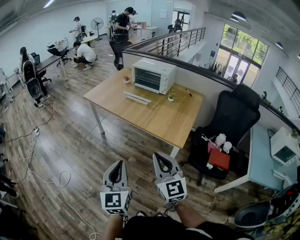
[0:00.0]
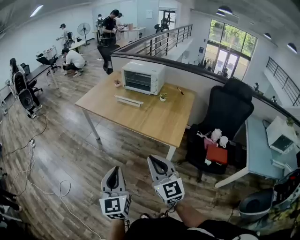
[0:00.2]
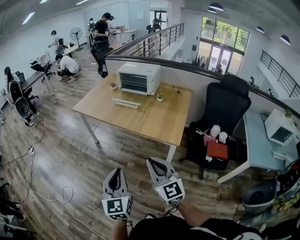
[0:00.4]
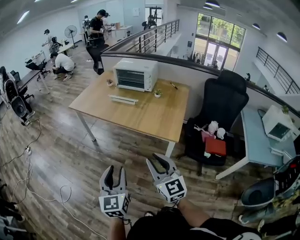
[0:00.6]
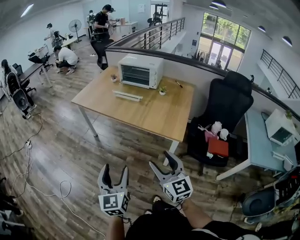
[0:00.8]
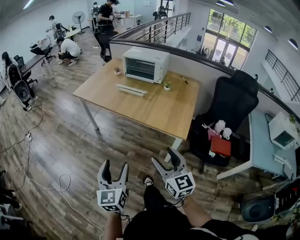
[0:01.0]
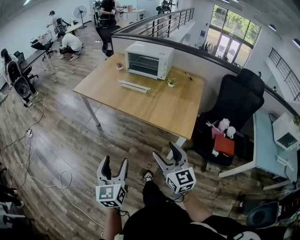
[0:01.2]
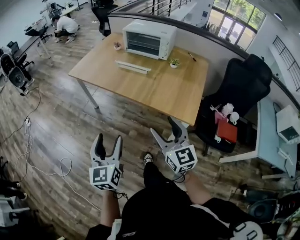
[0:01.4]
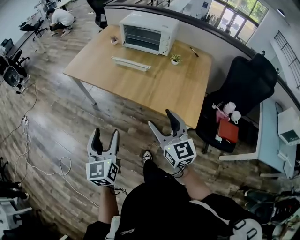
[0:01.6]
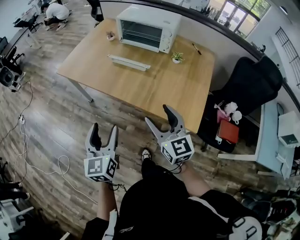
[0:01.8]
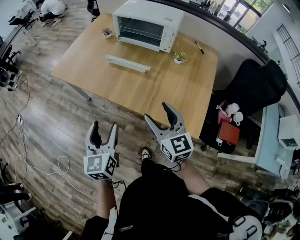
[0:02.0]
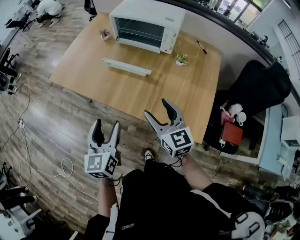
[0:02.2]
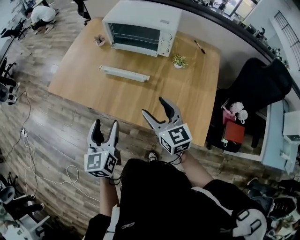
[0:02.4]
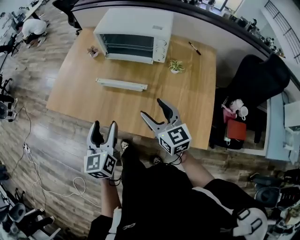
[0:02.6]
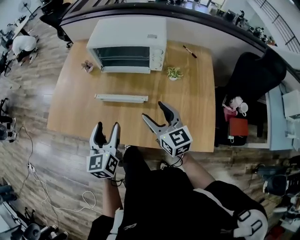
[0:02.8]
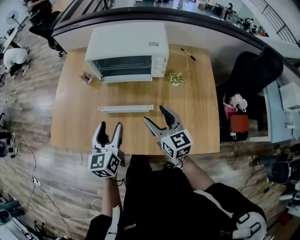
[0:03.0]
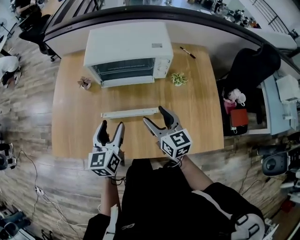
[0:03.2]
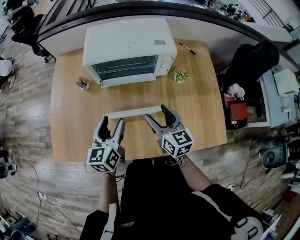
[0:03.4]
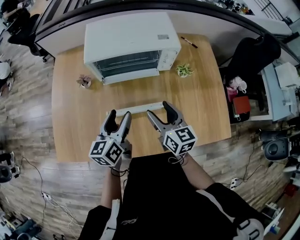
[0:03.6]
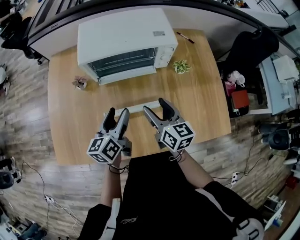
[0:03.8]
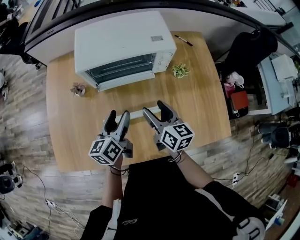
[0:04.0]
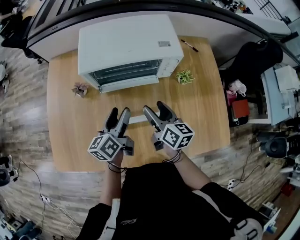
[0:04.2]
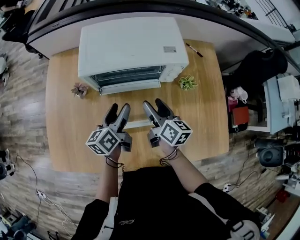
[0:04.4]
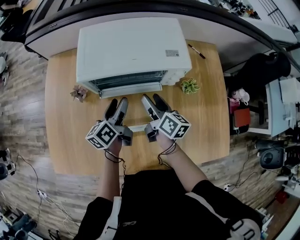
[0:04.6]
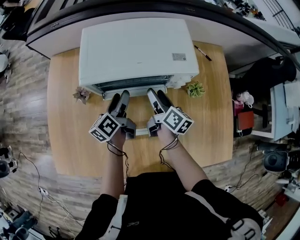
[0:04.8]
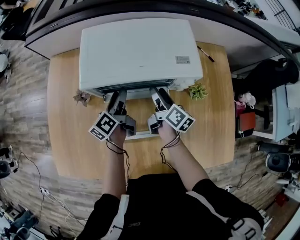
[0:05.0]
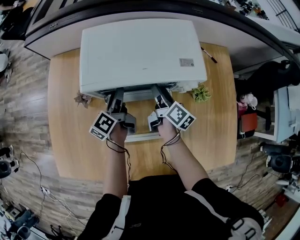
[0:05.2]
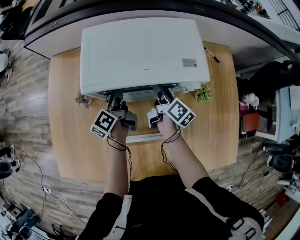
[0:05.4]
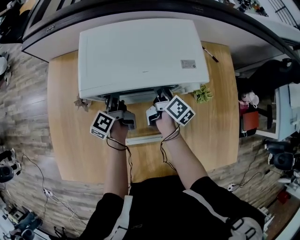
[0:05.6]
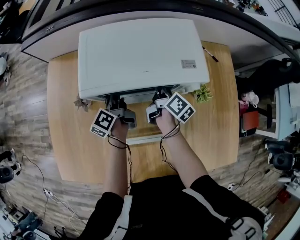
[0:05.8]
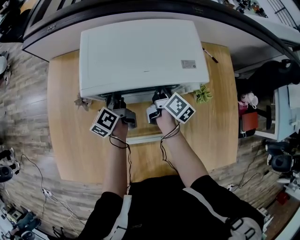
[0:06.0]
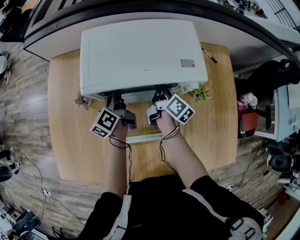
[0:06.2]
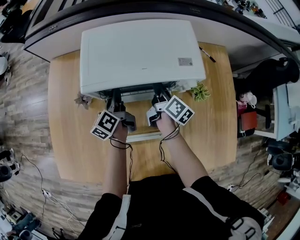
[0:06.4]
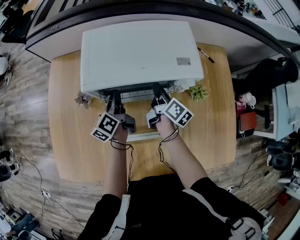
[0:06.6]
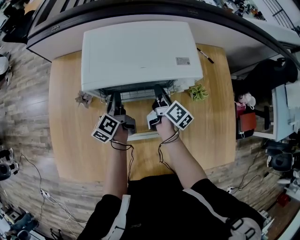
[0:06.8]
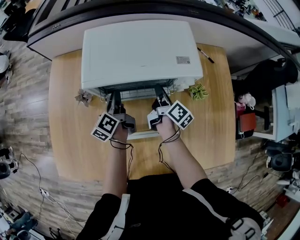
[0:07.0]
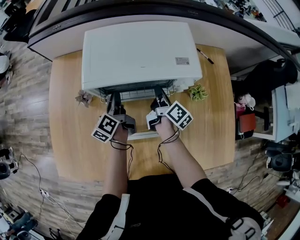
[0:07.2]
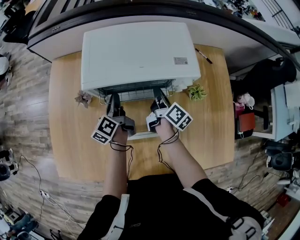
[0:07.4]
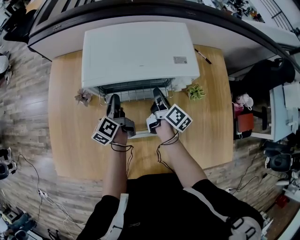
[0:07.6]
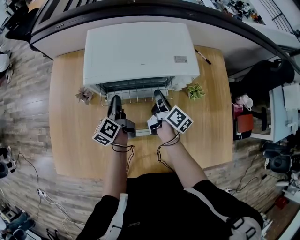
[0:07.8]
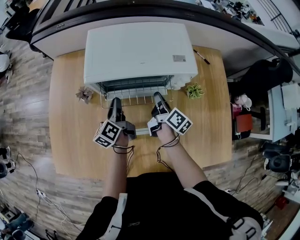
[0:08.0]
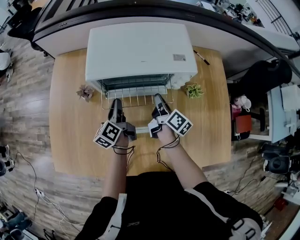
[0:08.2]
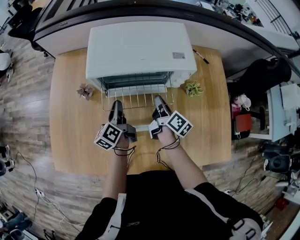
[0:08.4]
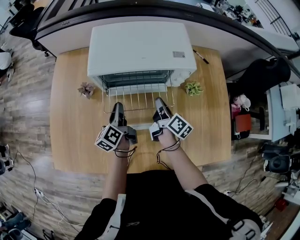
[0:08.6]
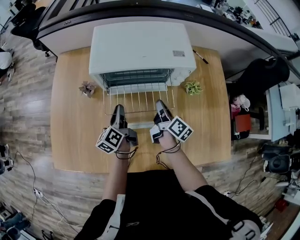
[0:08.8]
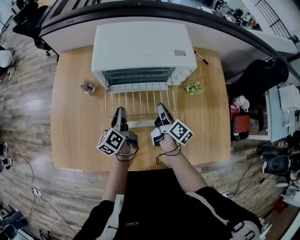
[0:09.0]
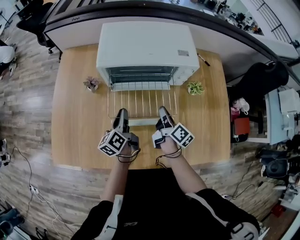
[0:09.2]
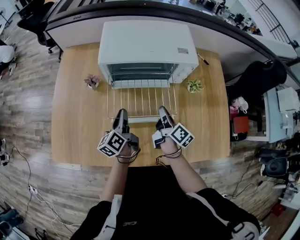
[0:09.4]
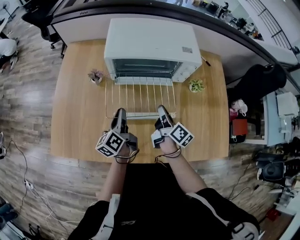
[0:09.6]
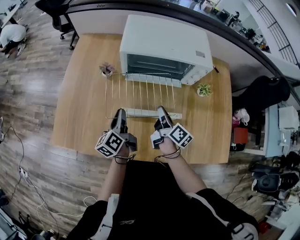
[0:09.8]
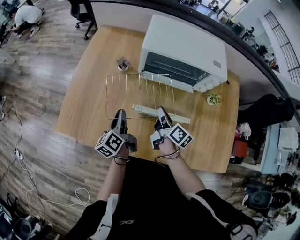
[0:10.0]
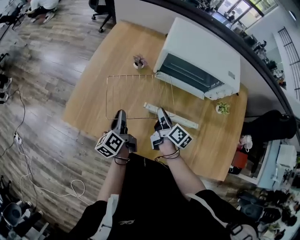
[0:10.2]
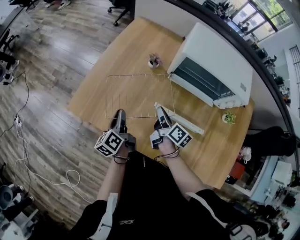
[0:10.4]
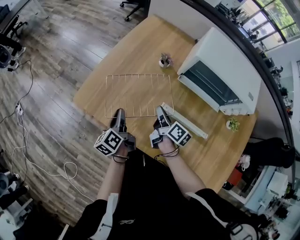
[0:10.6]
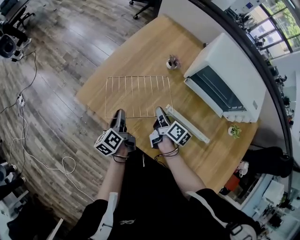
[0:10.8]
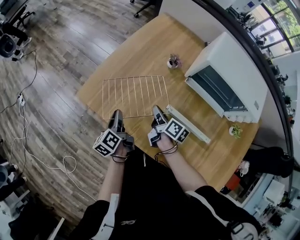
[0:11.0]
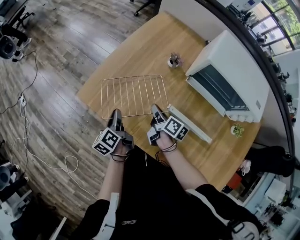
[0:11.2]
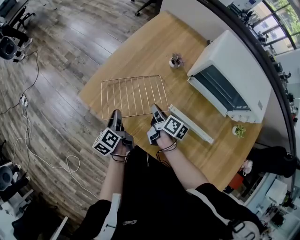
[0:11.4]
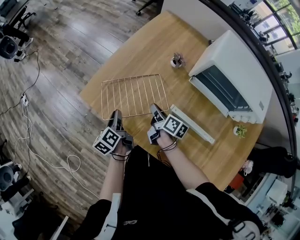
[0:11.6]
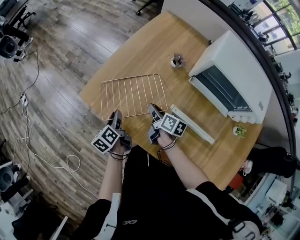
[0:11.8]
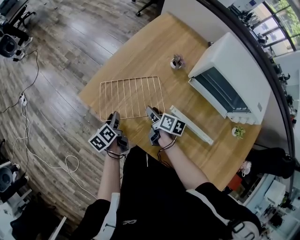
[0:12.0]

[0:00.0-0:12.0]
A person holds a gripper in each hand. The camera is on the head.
0:00.0 to 0:01.6: The grippers both shift forward by approximately 25 cm. The left gripper opens; the right gripper opens.
0:01.6 to 0:03.0: The pair of grippers is taken forward, about 40 cm. The right gripper rotates approximately 20 degrees, while the left gripper rotates roughly 30 degrees.
0:03.0 to 0:04.4: The grippers both shift forward and downward by roughly 20 cm. The right gripper changes its angle by roughly 40 degrees. Meanwhile the left gripper turns by about 30 degrees.
0:04.4 to 0:06.0: Both grippers move forward, about 15 cm. The left gripper rotates about 20 degrees, and closes its fingers. The right gripper swivels approximately 20 degrees, and closes.
0:06.0 to 0:07.6: Both grippers move backward, about 5 cm.
0:07.6 to 0:09.0: Both grippers travel together backward, roughly 10 cm.
0:09.0 to 0:10.4: The left gripper shifts by roughly 30 cm, and changes its angle by roughly 30 degrees. The right gripper shifts by about 25 cm, and rotates approximately 30 degrees.
0:10.4 to 0:12.0: Both grippers travel together to the left and downward, roughly 15 cm. The right gripper rotates about 30 degrees, and opens up; the left gripper swivels some 20 degrees.

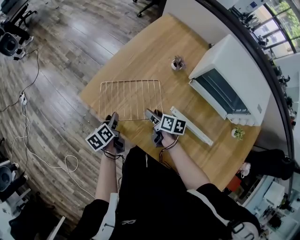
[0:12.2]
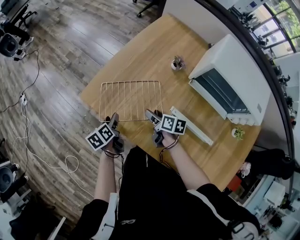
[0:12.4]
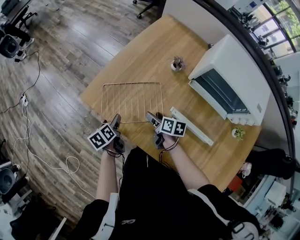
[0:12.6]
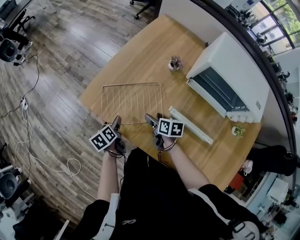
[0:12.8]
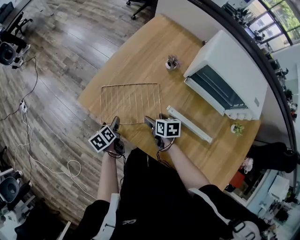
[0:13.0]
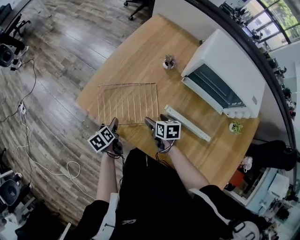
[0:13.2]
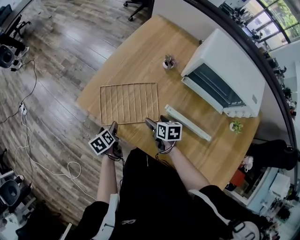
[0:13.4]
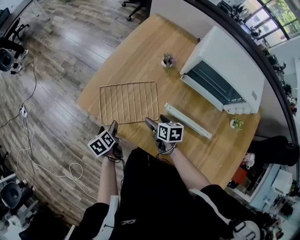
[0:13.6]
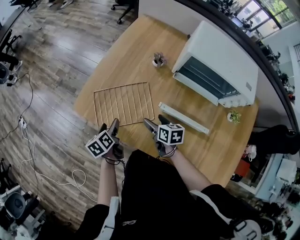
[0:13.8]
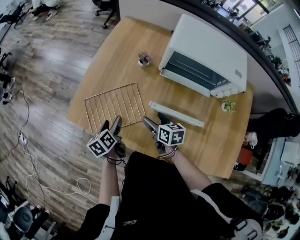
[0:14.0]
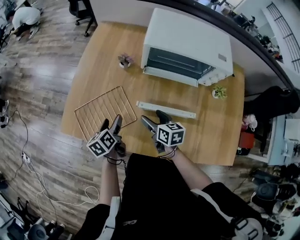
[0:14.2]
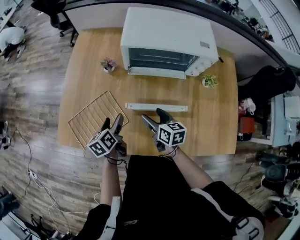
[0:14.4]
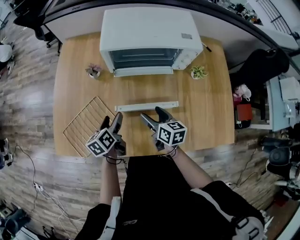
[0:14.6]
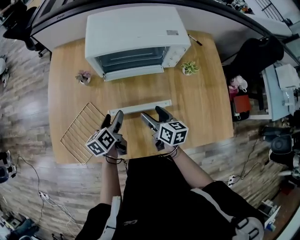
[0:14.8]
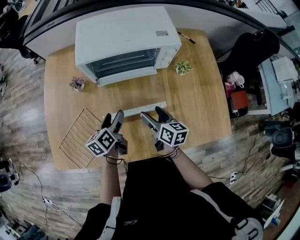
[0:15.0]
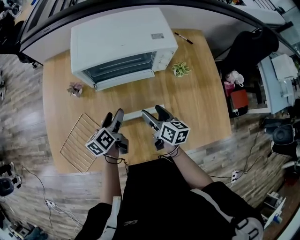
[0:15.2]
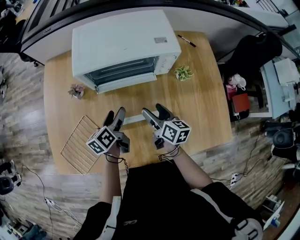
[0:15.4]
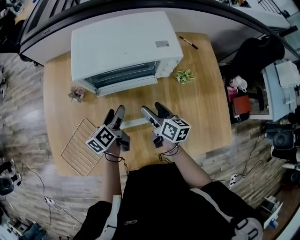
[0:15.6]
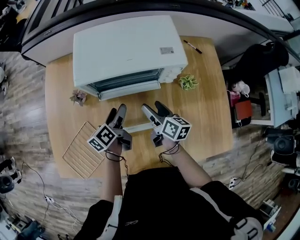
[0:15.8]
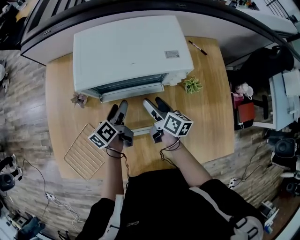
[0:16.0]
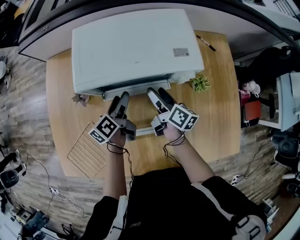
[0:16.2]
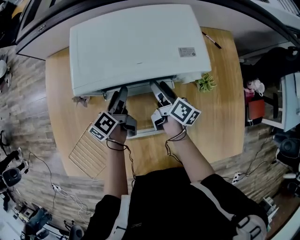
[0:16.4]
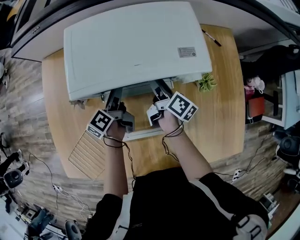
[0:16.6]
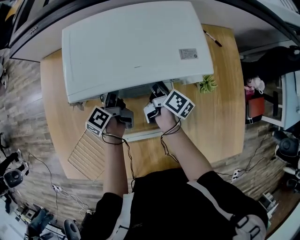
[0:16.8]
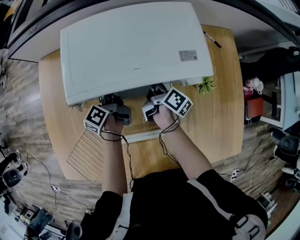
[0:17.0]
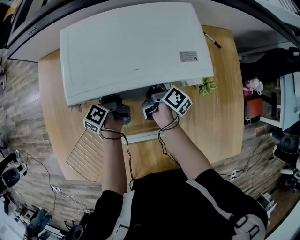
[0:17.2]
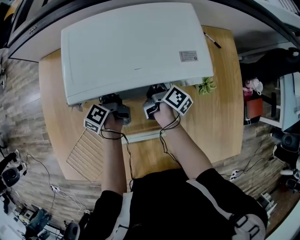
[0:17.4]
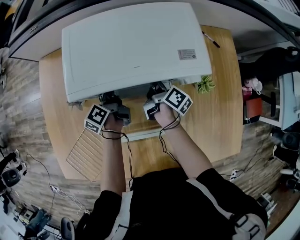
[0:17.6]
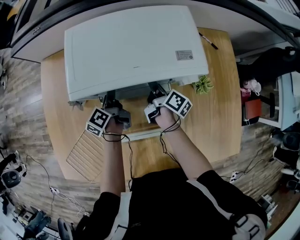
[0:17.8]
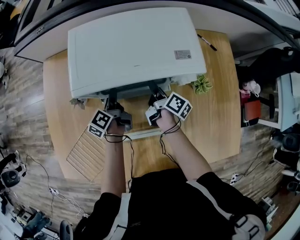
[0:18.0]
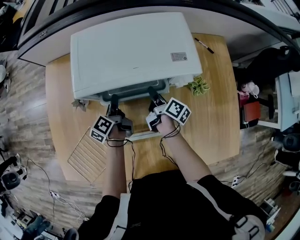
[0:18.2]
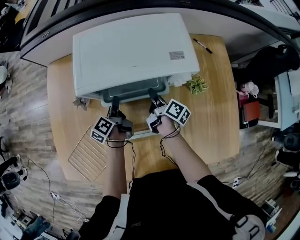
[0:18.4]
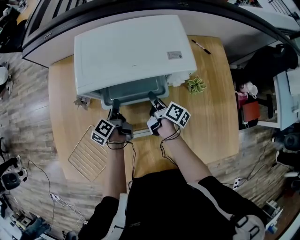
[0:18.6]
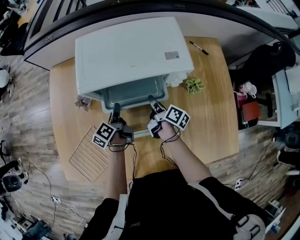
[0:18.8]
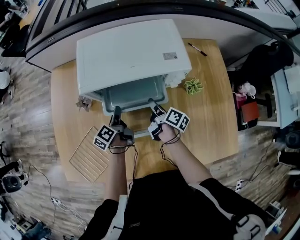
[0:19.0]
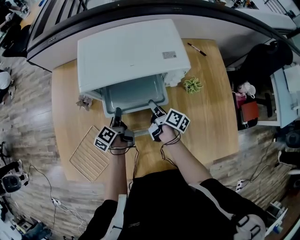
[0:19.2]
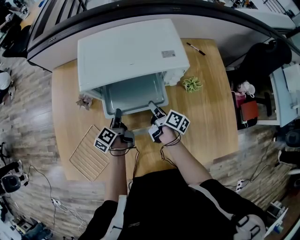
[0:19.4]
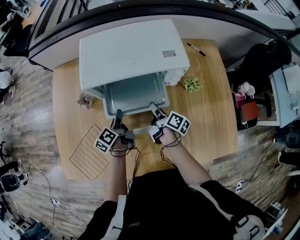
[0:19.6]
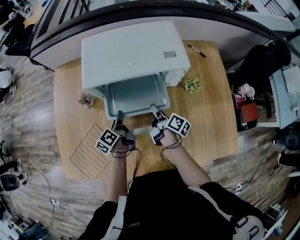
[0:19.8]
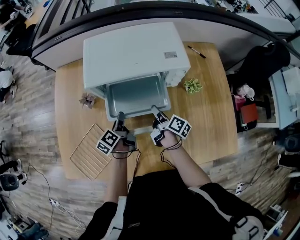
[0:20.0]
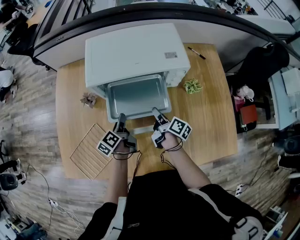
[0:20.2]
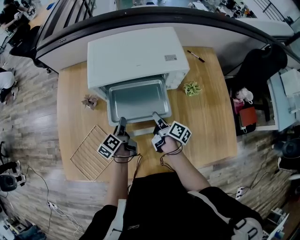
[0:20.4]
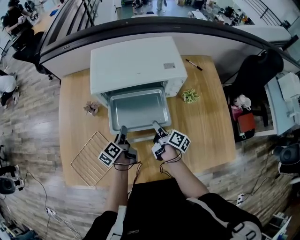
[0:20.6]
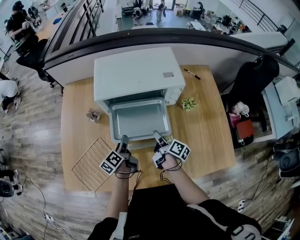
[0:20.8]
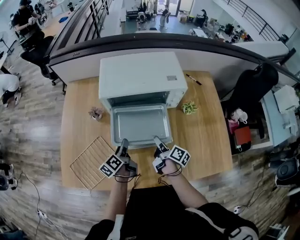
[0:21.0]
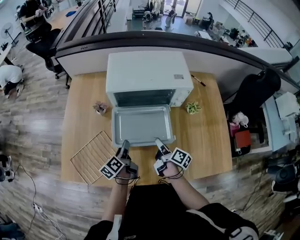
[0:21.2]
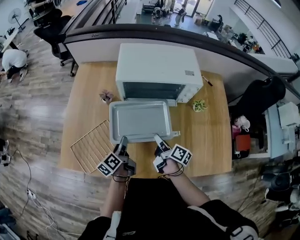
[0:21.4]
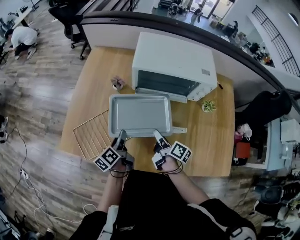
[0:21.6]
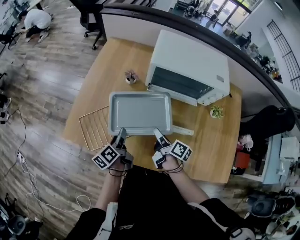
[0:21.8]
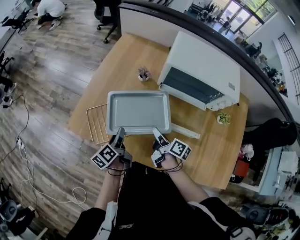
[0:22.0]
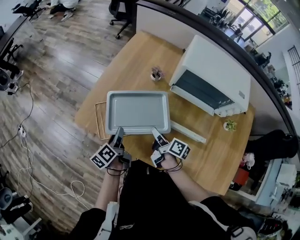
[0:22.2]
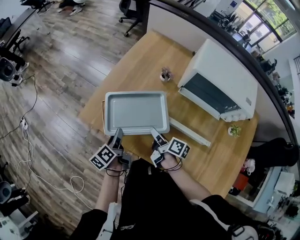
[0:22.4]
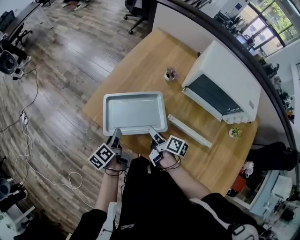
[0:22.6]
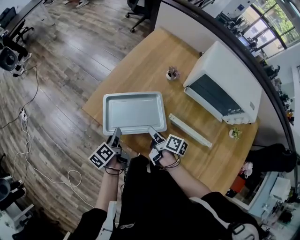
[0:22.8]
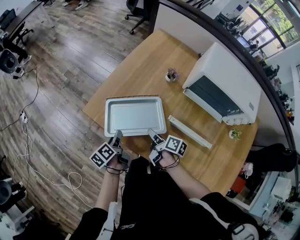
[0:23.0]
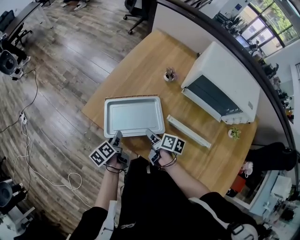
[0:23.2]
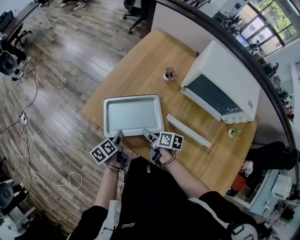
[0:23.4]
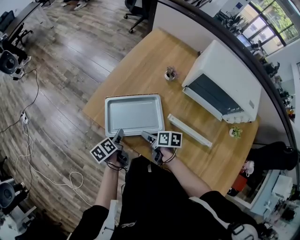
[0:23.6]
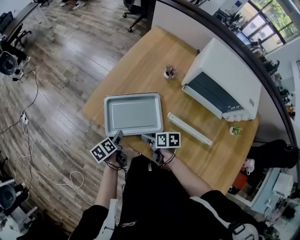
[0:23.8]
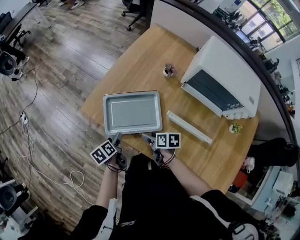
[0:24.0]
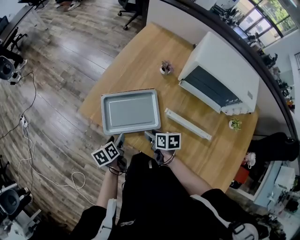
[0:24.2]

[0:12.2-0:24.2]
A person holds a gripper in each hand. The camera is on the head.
0:12.2 to 0:13.8: The left gripper opens up. The right gripper goes some 5 cm backward.
0:13.8 to 0:15.2: The right gripper moves about 30 cm, and changes its angle by roughly 50 degrees. Meanwhile the left gripper shifts by some 35 cm, and rotates some 40 degrees.
0:15.2 to 0:16.6: The two grippers go roughly 20 cm forward. The left gripper rotates roughly 20 degrees, while the right gripper swivels about 30 degrees.
0:16.6 to 0:18.2: The left gripper closes up; the right gripper closes its fingers.
0:18.2 to 0:19.8: The grippers both shift backward by some 10 cm.
0:19.8 to 0:21.2: The grippers both shift backward by approximately 10 cm.
0:21.2 to 0:22.6: The left gripper ends up roughly 30 cm from where it was, and turns by approximately 40 degrees. The right gripper ends up about 30 cm from where it was, and rotates approximately 40 degrees.
0:22.6 to 0:24.2: The grippers both shift downward by some 5 cm. The right gripper turns by about 40 degrees; the left gripper swivels about 30 degrees, and opens.
